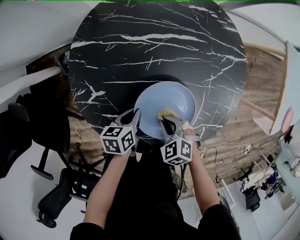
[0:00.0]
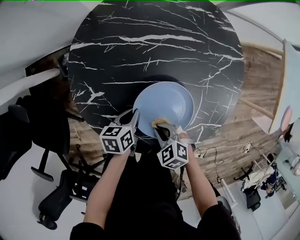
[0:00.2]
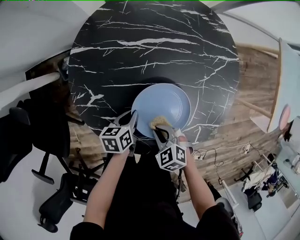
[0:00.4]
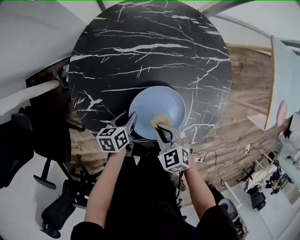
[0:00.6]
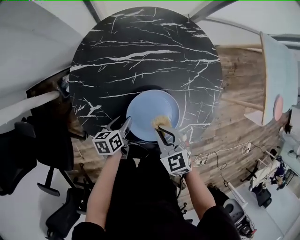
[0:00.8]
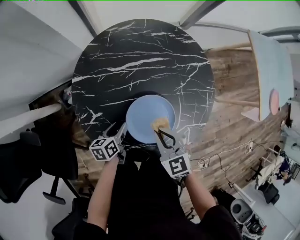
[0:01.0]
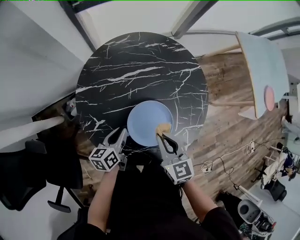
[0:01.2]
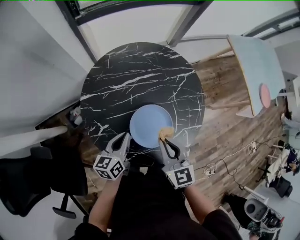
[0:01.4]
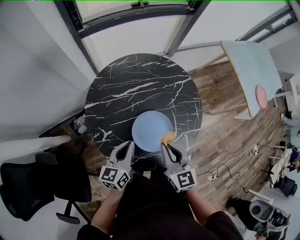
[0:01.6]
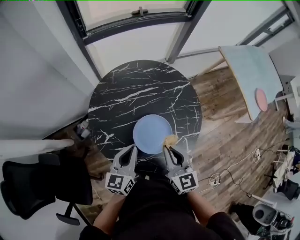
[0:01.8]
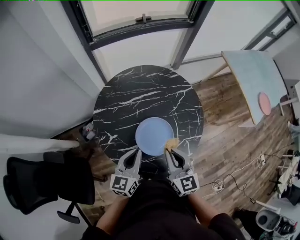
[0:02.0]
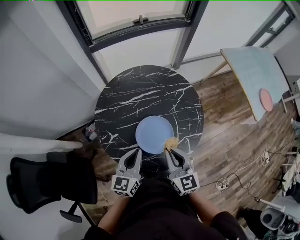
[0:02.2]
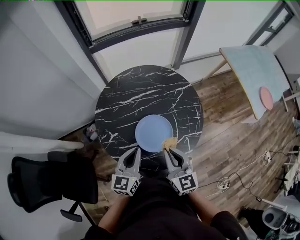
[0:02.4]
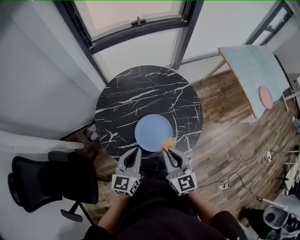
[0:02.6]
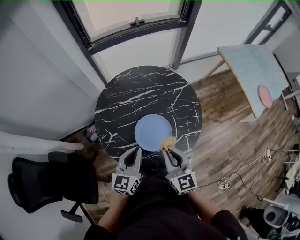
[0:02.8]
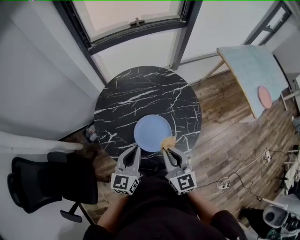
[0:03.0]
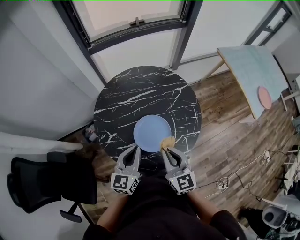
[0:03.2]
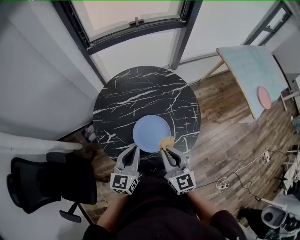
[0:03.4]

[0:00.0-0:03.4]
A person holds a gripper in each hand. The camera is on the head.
0:00.0 to 0:01.6: Both grippers move upward, some 30 cm. The right gripper angles its fingers upward, by roughly 50 degrees, while the left gripper angles its fingers upward, by some 30 degrees, and opens and closes again.
0:01.6 to 0:03.4: The right gripper goes some 5 cm backward. The left gripper travels upward and to the right by roughly 10 cm.

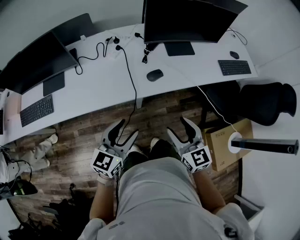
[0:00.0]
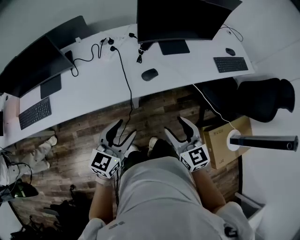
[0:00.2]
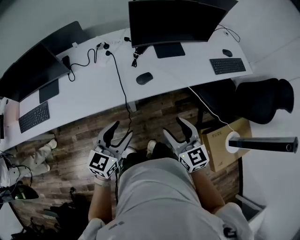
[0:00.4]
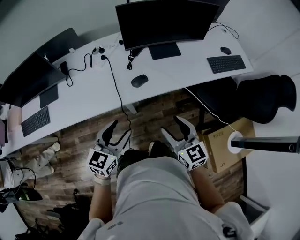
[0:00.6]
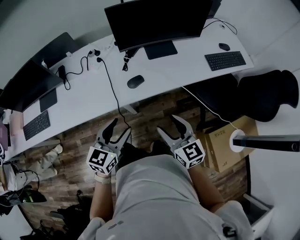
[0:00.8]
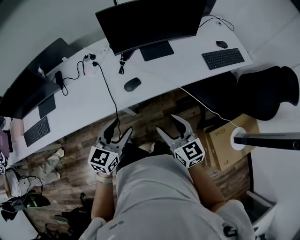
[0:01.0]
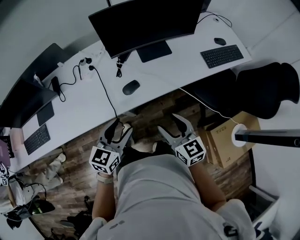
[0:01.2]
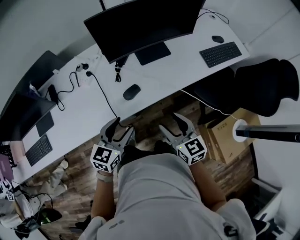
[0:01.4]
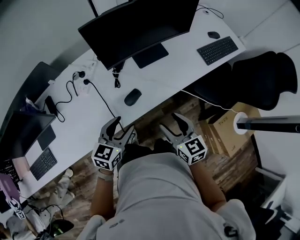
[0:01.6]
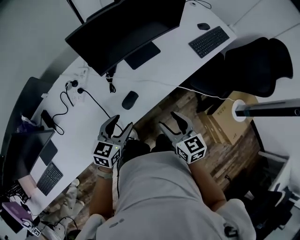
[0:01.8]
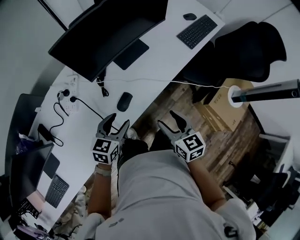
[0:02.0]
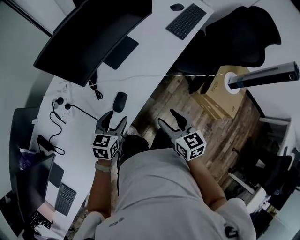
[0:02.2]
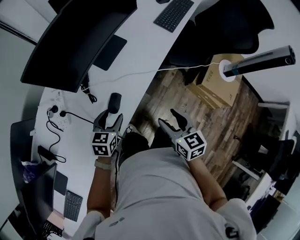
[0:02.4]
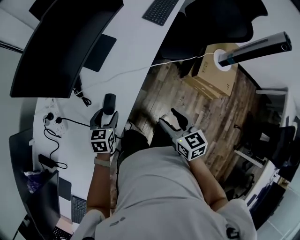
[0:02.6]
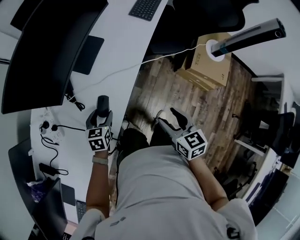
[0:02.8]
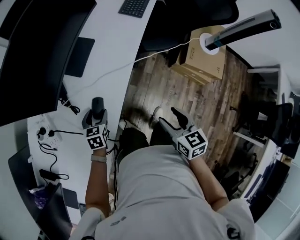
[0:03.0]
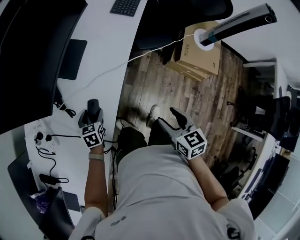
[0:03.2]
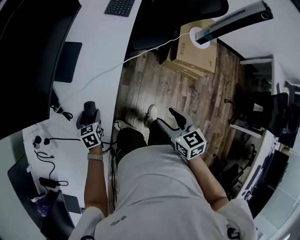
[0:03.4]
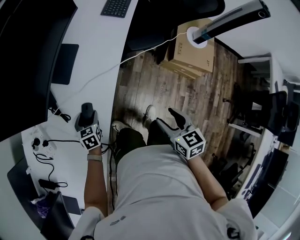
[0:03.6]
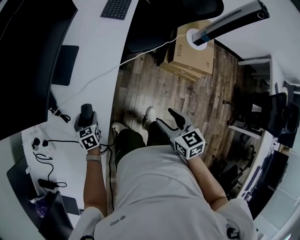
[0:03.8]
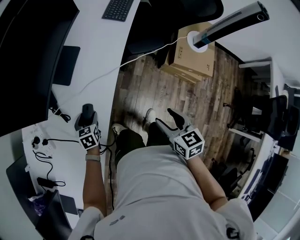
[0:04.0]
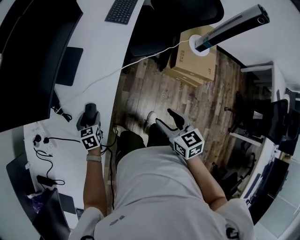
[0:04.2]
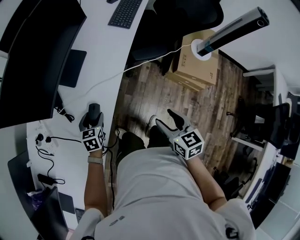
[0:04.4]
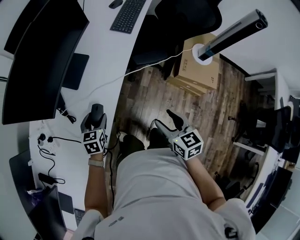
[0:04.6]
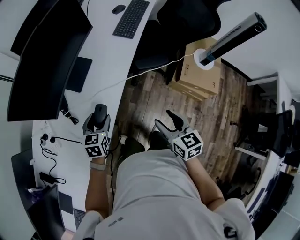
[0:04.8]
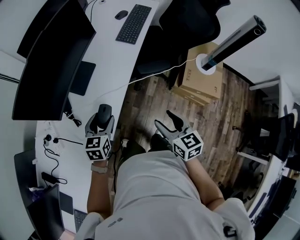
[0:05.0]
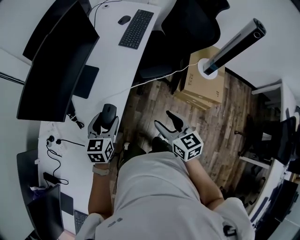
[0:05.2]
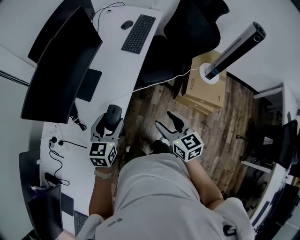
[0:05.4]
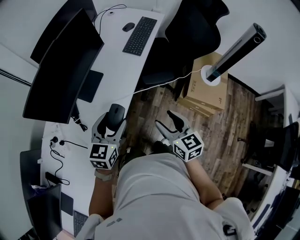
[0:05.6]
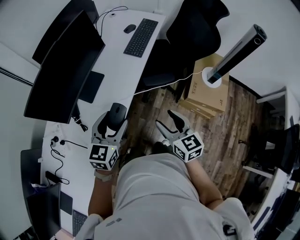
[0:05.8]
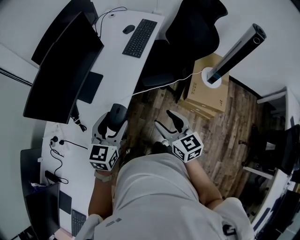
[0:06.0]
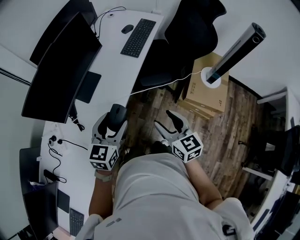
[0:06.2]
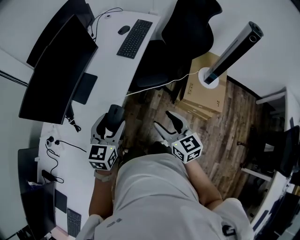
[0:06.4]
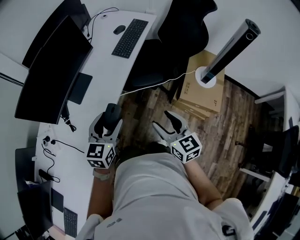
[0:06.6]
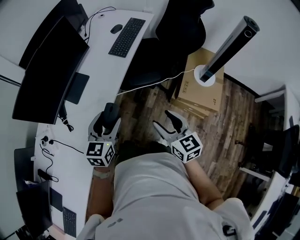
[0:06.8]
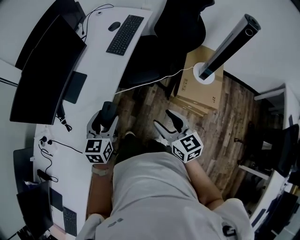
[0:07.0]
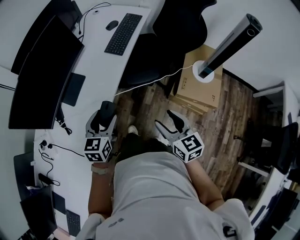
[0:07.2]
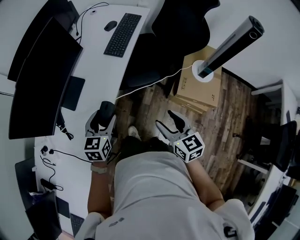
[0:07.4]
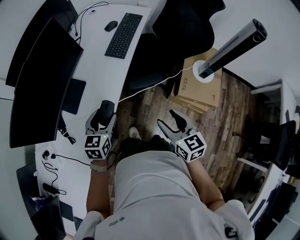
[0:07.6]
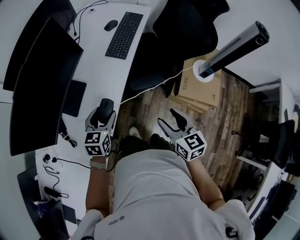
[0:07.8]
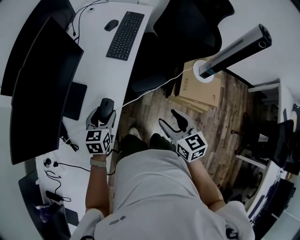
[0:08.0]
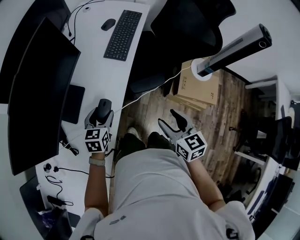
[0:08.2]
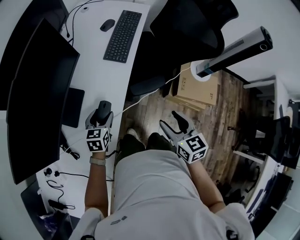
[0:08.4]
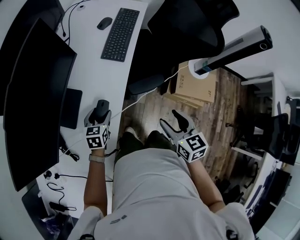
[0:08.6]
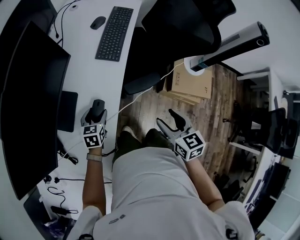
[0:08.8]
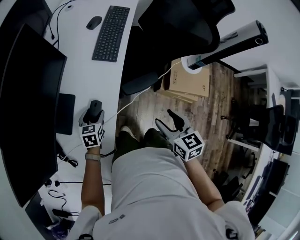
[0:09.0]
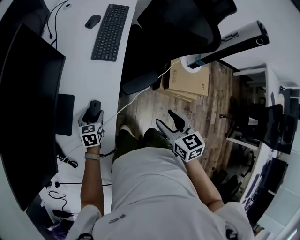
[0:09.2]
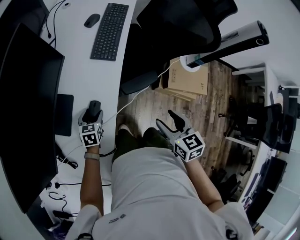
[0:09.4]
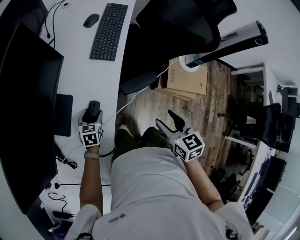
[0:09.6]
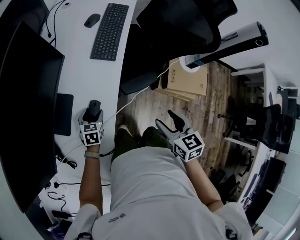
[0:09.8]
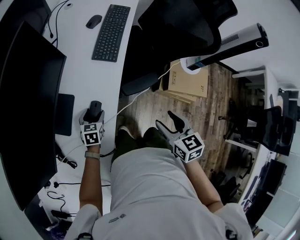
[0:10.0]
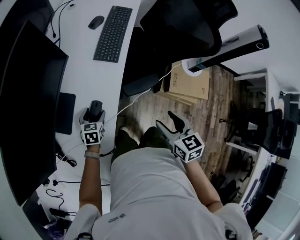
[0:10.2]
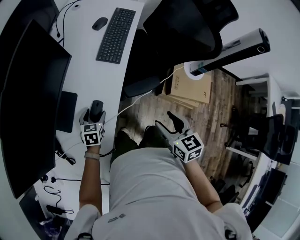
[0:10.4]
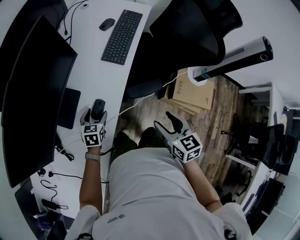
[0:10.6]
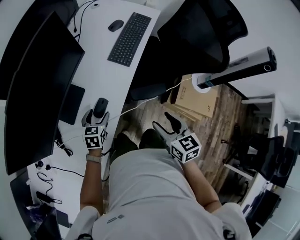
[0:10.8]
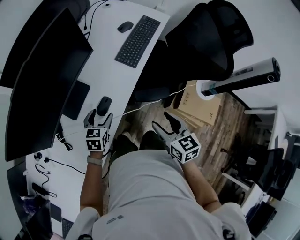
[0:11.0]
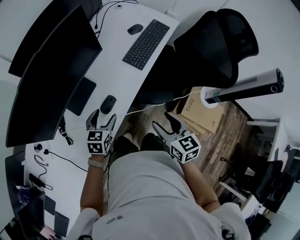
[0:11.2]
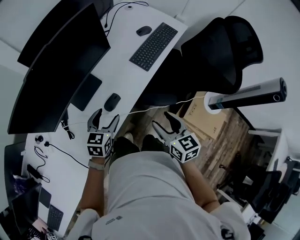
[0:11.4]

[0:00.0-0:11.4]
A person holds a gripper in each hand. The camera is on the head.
0:00.0 to 0:01.4: Both grippers travel together forward and to the right, about 15 cm.
0:01.4 to 0:02.8: The right gripper goes about 5 cm downward, and swivels about 50 degrees. The left gripper is displaced downward by approximately 20 cm, and swivels roughly 40 degrees.
0:02.8 to 0:04.2: The right gripper shifts approximately 5 cm to the right.
0:04.2 to 0:05.6: The left gripper travels upward and to the right by roughly 30 cm, and turns by about 30 degrees; the right gripper is displaced upward and forward by roughly 10 cm.
0:05.6 to 0:07.2: The two grippers go roughly 10 cm to the right.
0:07.2 to 0:08.6: The right gripper shifts about 15 cm forward and to the left, while the left gripper shifts roughly 25 cm forward, downward and to the left.
0:08.6 to 0:10.0: The left gripper shifts approximately 5 cm downward.
0:10.0 to 0:11.4: The left gripper travels upward by roughly 15 cm, and swivels about 20 degrees. The right gripper shifts by roughly 5 cm, and rotates roughly 30 degrees.

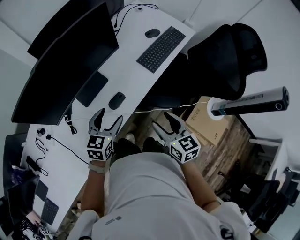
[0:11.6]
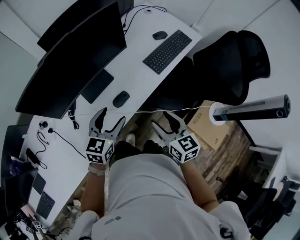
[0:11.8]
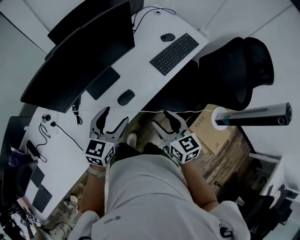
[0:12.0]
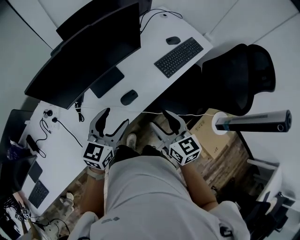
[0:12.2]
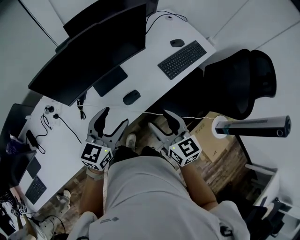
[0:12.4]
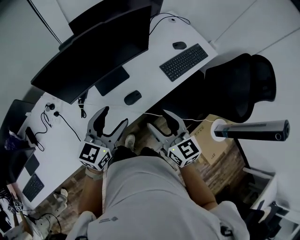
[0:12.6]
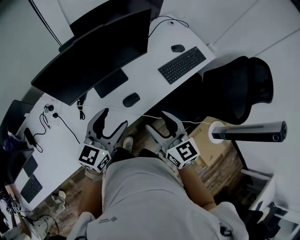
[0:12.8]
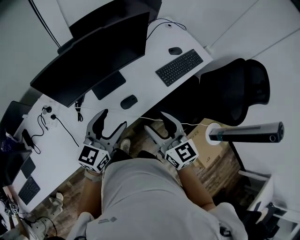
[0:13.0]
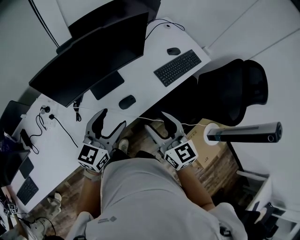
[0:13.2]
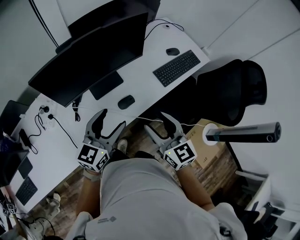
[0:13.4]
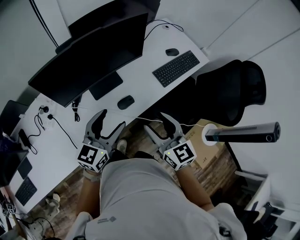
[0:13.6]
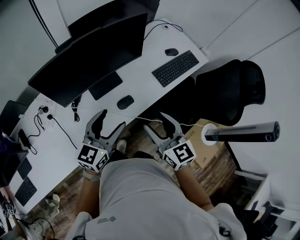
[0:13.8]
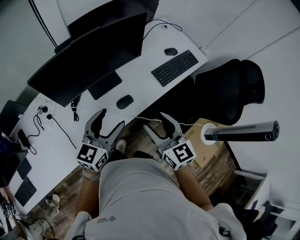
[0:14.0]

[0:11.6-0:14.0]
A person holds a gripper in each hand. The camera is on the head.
0:11.6 to 0:12.8: The left gripper shifts approximately 15 cm upward, and turns by roughly 20 degrees. The right gripper travels upward and to the left by approximately 15 cm, and changes its angle by some 20 degrees.
0:12.8 to 0:14.0: There are only small adjustments of the grippers.

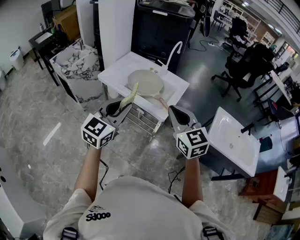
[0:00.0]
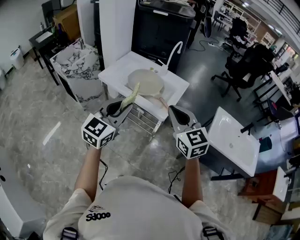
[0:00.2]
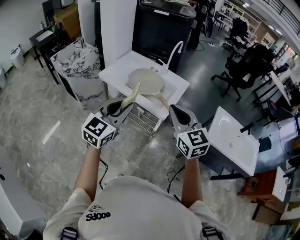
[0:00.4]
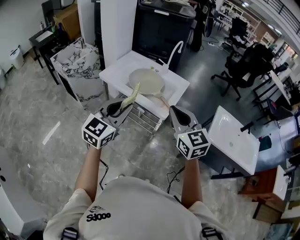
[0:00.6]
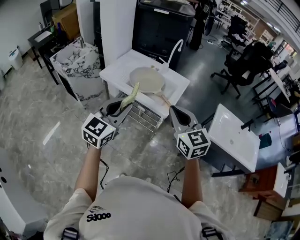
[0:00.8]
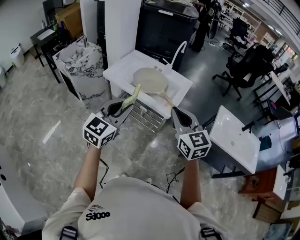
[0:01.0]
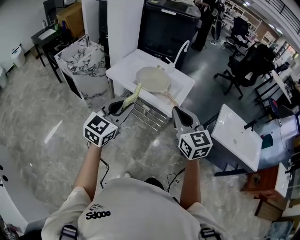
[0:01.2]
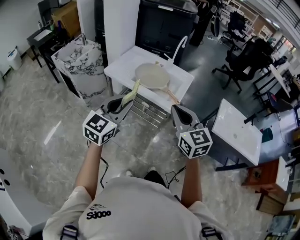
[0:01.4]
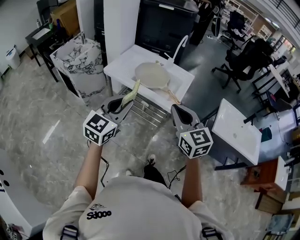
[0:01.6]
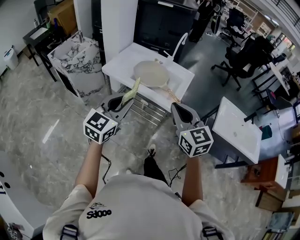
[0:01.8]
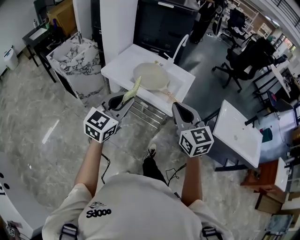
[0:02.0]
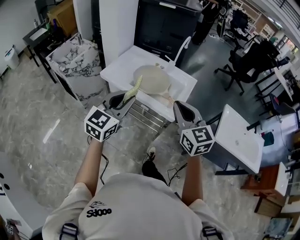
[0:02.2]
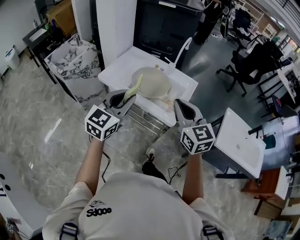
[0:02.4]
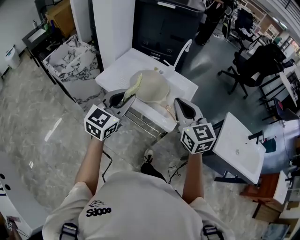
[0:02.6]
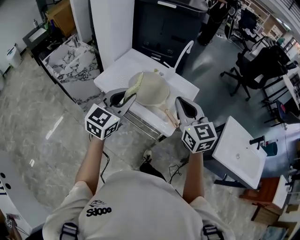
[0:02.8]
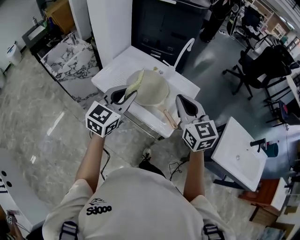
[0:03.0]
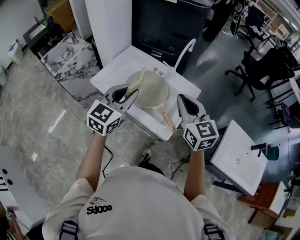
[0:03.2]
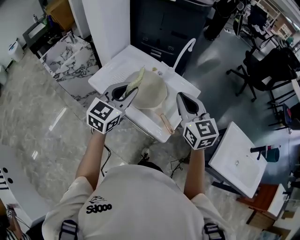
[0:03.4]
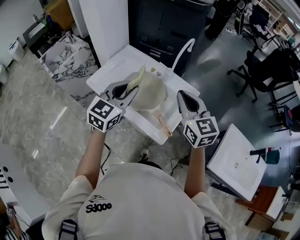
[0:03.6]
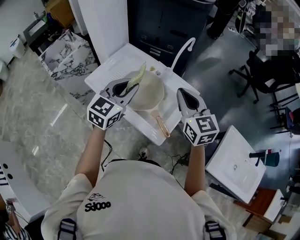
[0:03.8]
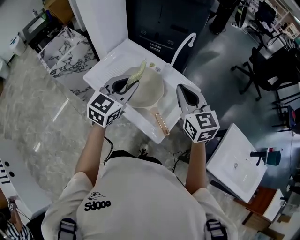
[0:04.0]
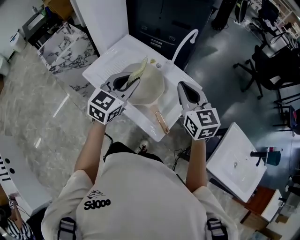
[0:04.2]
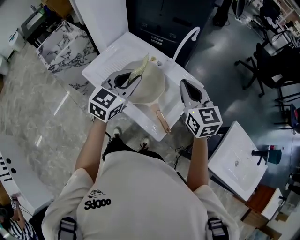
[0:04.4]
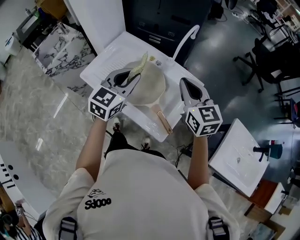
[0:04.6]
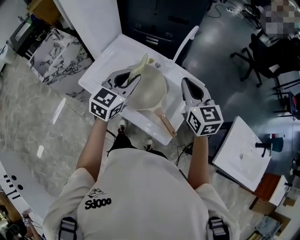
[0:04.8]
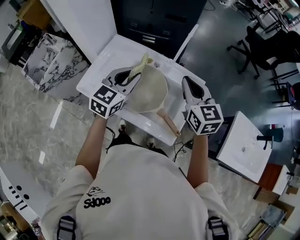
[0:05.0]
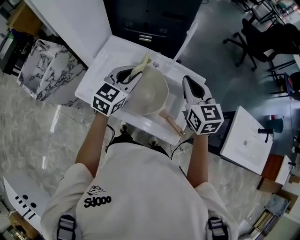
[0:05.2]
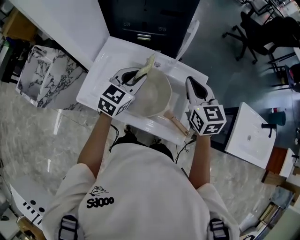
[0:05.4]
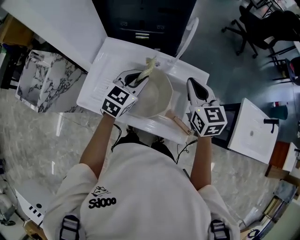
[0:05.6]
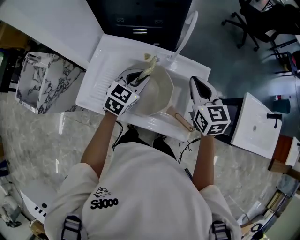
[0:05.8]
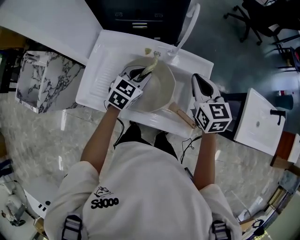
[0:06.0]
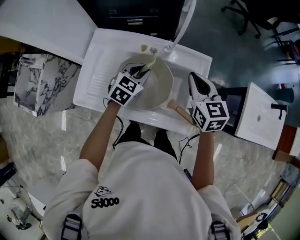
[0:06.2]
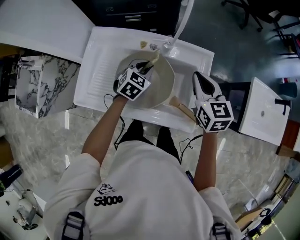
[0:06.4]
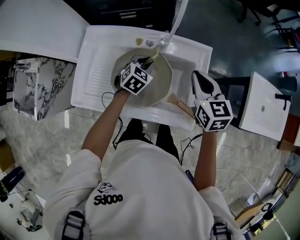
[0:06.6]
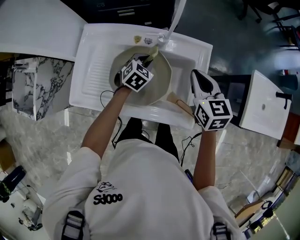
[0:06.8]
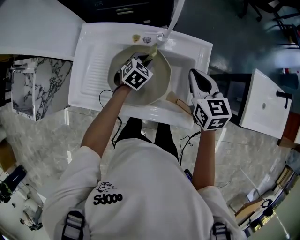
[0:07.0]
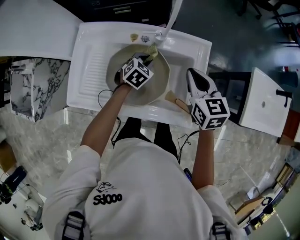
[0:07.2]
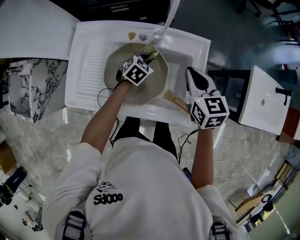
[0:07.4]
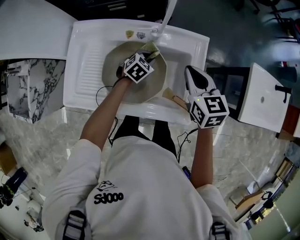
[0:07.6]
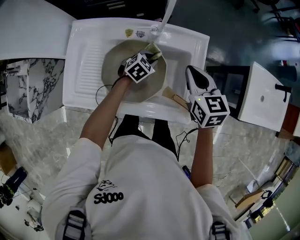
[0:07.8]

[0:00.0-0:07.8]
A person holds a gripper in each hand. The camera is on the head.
0:00.0 to 0:01.6: Both grippers move to the left, about 5 cm.
0:01.6 to 0:03.2: Both grippers travel together forward, some 25 cm.
0:03.2 to 0:04.6: Both grippers move forward, about 10 cm.
0:04.6 to 0:06.2: The left gripper shifts roughly 20 cm downward and forward, and swivels approximately 30 degrees; the right gripper shifts about 10 cm downward, and turns by approximately 30 degrees.
0:06.2 to 0:07.8: The left gripper goes some 15 cm downward and to the right, and rotates roughly 20 degrees. Meanwhile the right gripper travels downward by about 5 cm.
